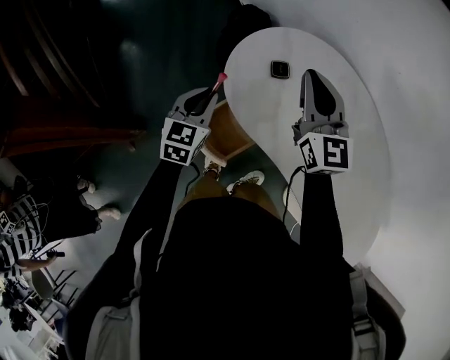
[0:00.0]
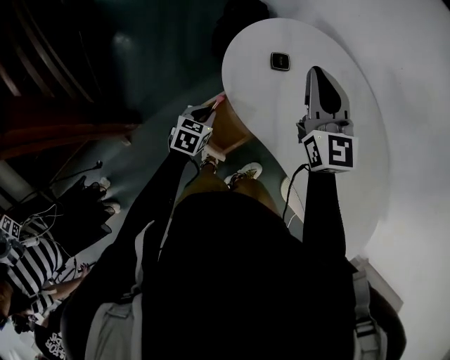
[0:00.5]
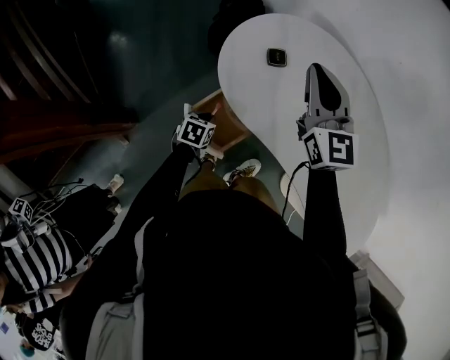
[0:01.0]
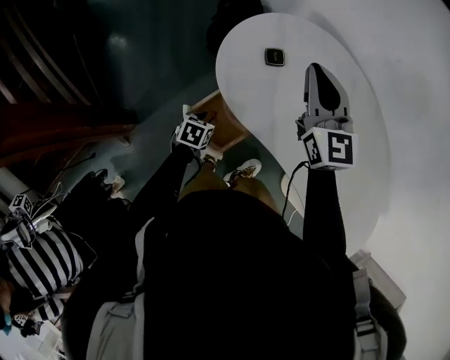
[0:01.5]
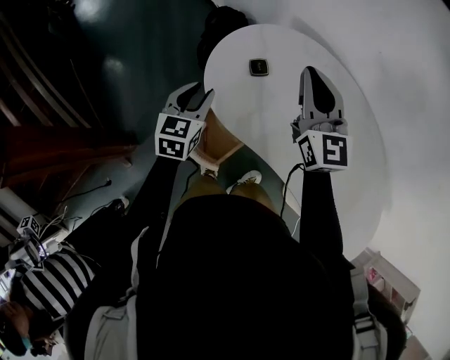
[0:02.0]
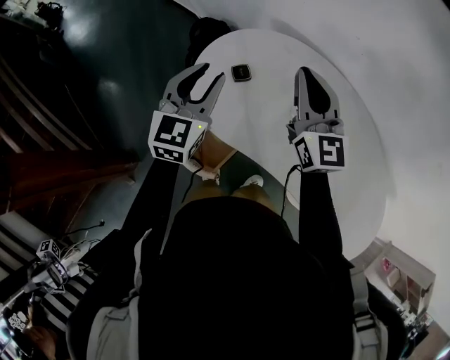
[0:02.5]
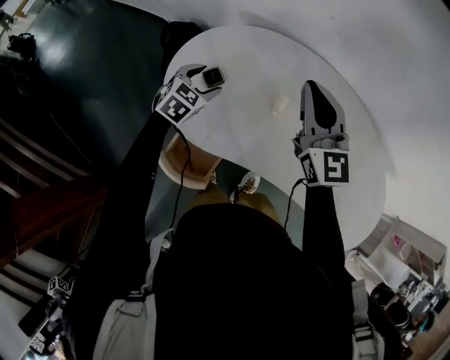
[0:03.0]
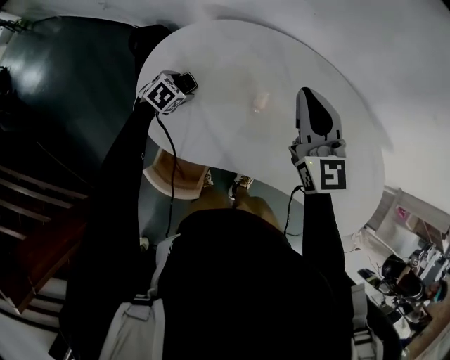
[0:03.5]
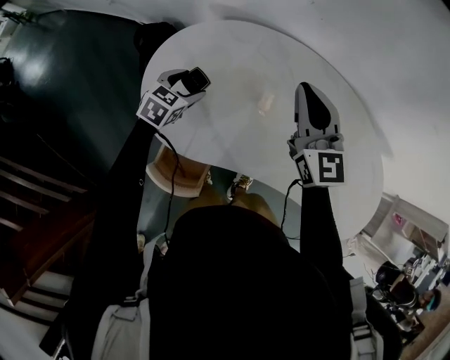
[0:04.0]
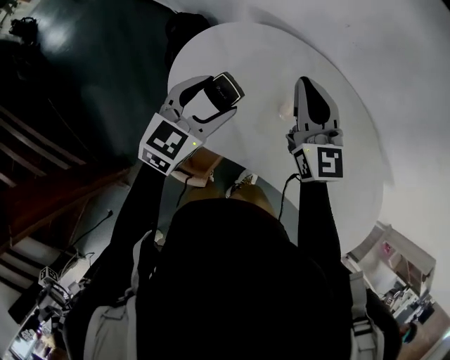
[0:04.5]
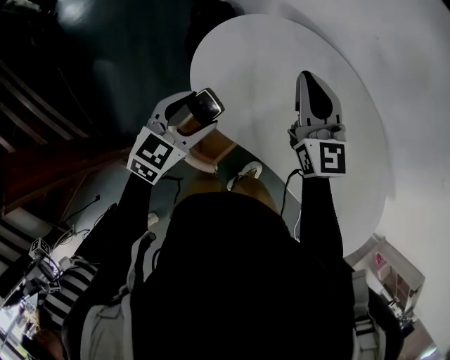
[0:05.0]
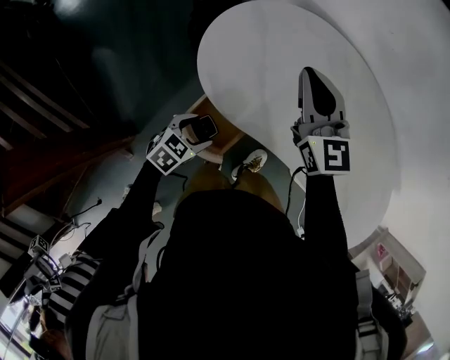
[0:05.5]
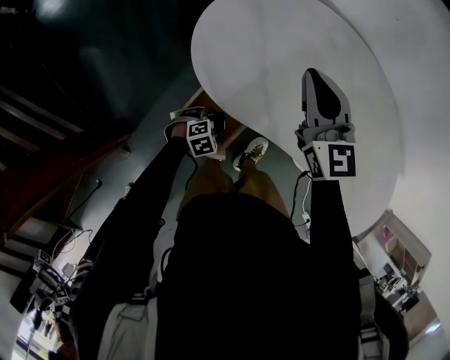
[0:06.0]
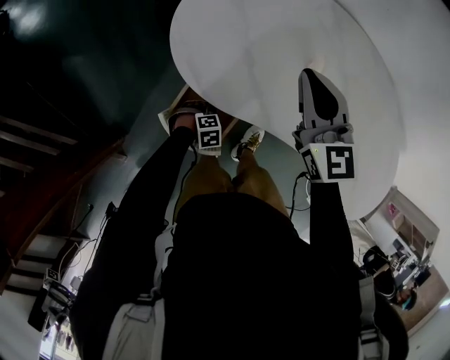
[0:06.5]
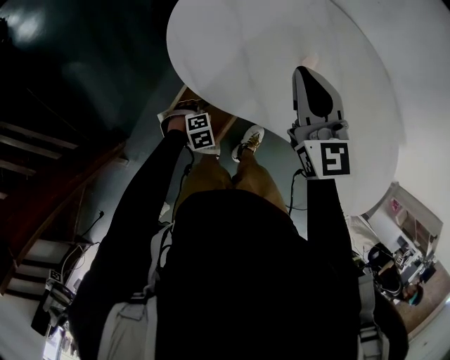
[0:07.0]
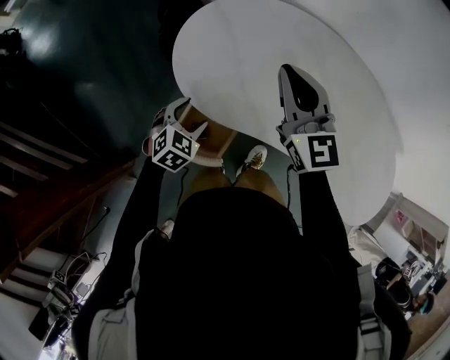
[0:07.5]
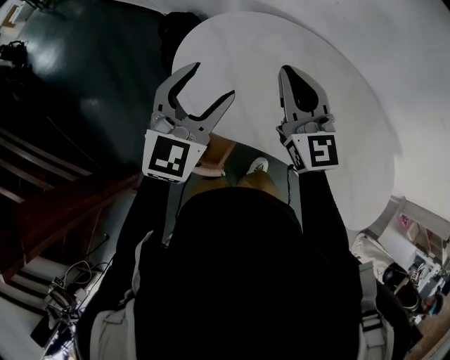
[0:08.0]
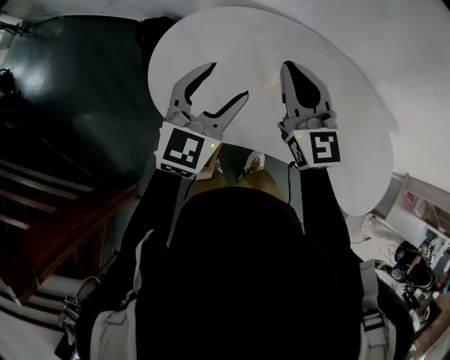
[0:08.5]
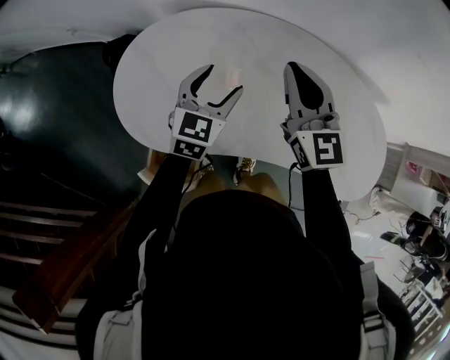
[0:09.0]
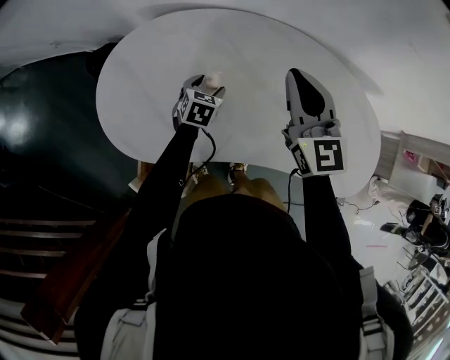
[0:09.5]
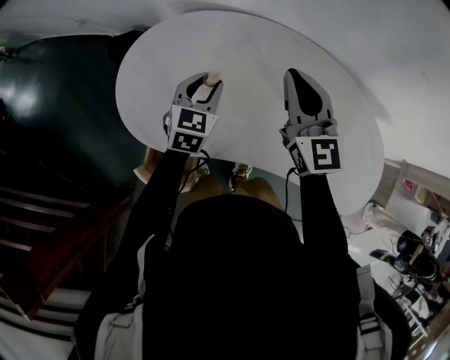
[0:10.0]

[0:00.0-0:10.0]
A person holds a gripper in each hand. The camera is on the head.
0:00.0 to 0:02.0: The right gripper shifts some 5 cm to the right. The left gripper goes downward and returns, roughly 20 cm each way.
0:02.0 to 0:04.0: The left gripper moves up and down over roughly 30 cm, changing direction 2 times, changes its angle by about 50 degrees, and opens its fingers, while the right gripper ends up approximately 15 cm from where it was, and changes its angle by roughly 20 degrees.
0:04.0 to 0:06.0: The right gripper moves to the left and backward, roughly 15 cm, while the left gripper travels backward and downward by about 35 cm, and turns by roughly 30 degrees.
0:06.0 to 0:08.0: The right gripper goes about 5 cm upward. The left gripper moves upward, approximately 40 cm, and angles its fingers upward, by roughly 60 degrees.
0:08.0 to 0:10.0: The left gripper heads downward, to the right and forward, covering about 25 cm, changes its angle by some 20 degrees, and closes. The right gripper travels to the right by roughly 20 cm.

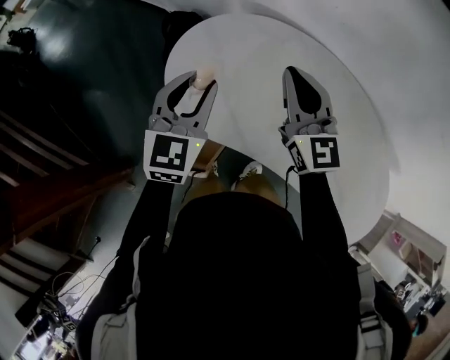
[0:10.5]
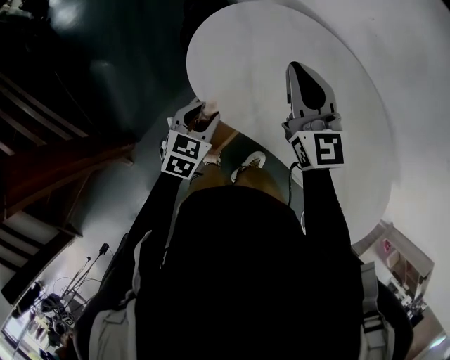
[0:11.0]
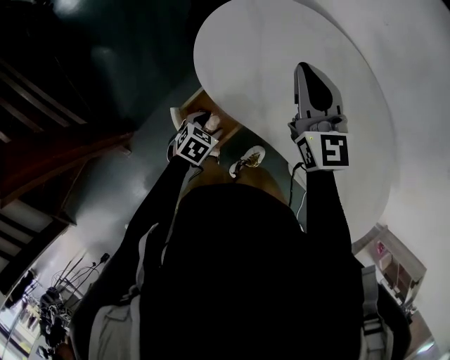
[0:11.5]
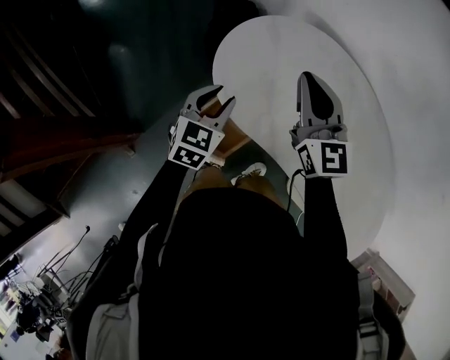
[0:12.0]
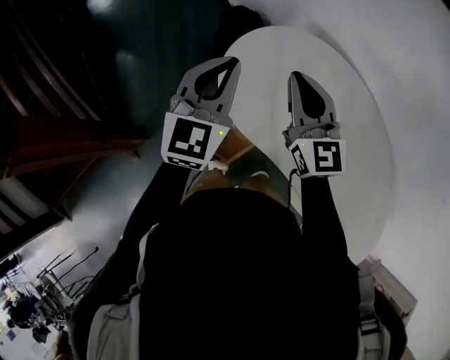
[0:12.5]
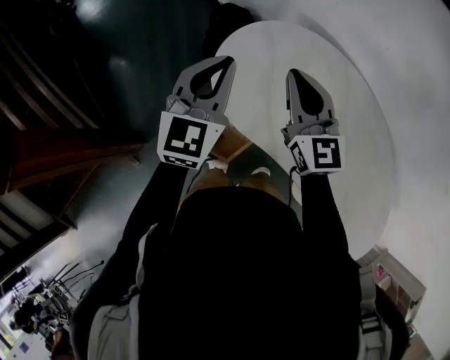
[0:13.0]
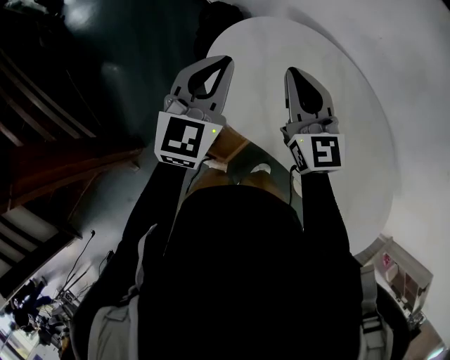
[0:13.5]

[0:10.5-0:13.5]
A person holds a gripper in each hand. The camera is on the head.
0:10.5 to 0:12.0: The right gripper is displaced to the left by some 10 cm; the left gripper is displaced downward and to the left by some 15 cm, and opens, then closes again.
0:12.0 to 0:13.5: The left gripper goes some 15 cm upward, turns by some 20 degrees, and closes up.

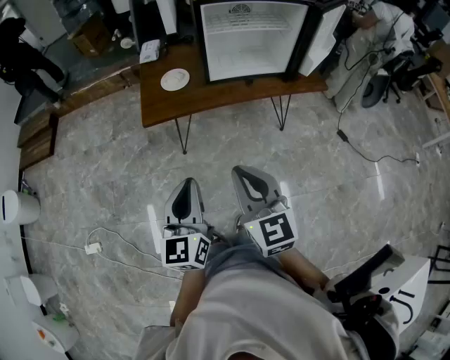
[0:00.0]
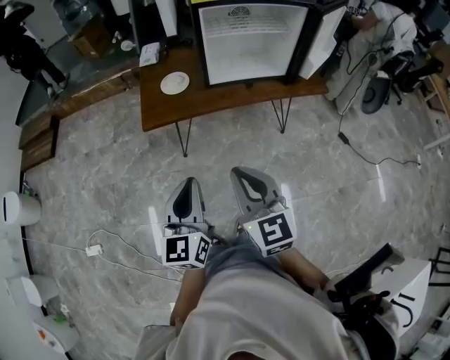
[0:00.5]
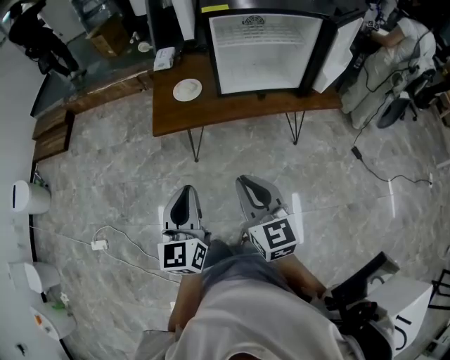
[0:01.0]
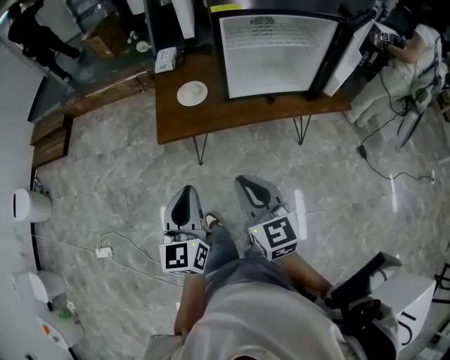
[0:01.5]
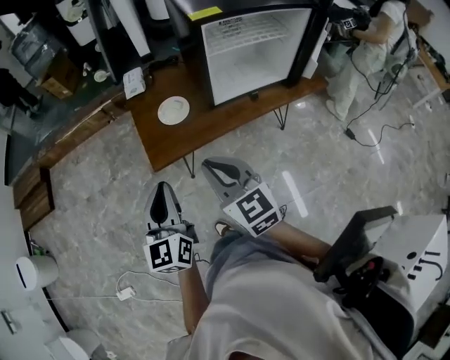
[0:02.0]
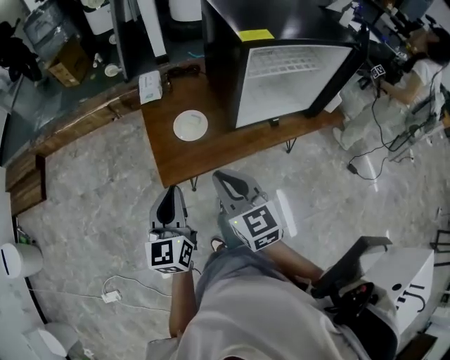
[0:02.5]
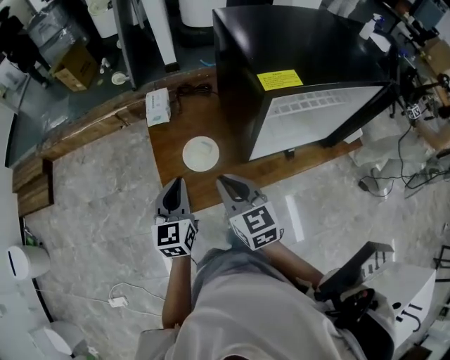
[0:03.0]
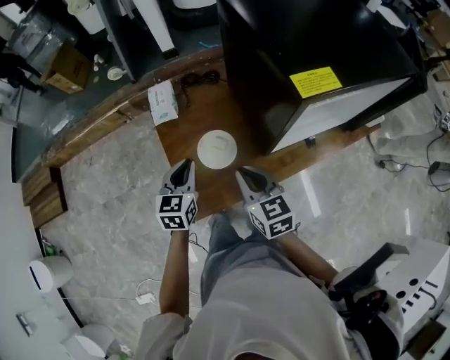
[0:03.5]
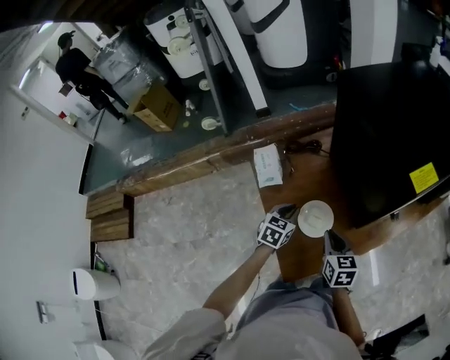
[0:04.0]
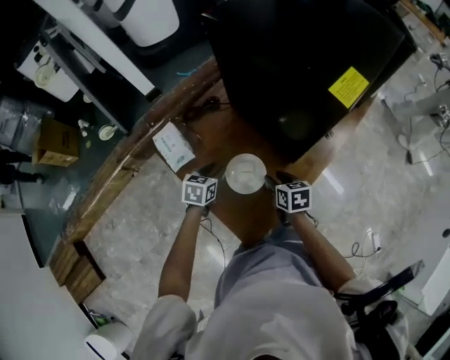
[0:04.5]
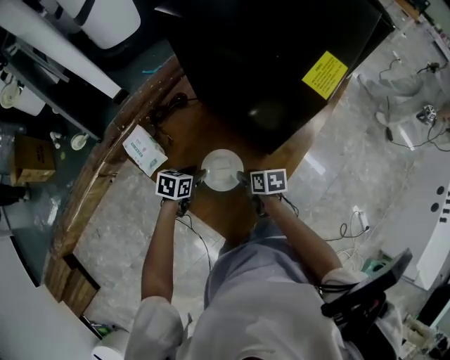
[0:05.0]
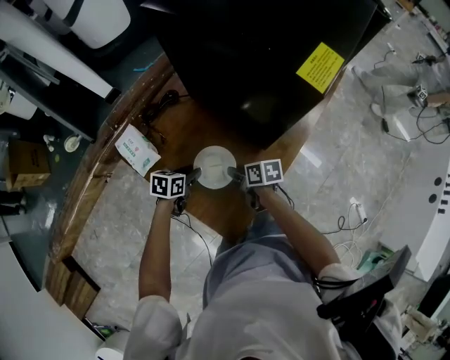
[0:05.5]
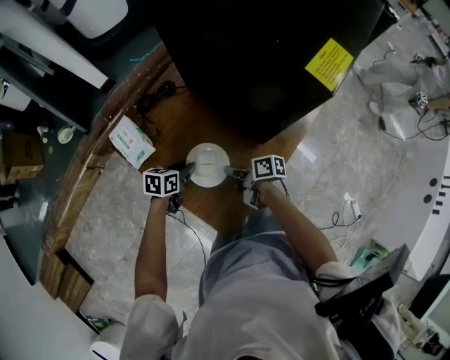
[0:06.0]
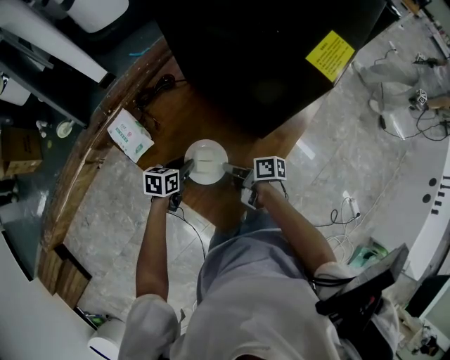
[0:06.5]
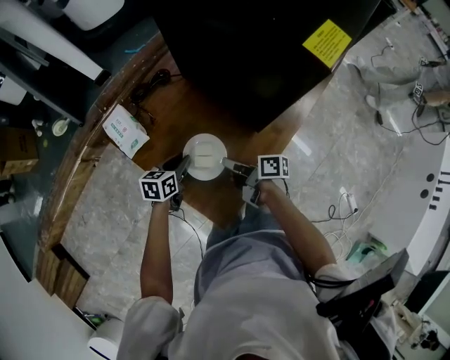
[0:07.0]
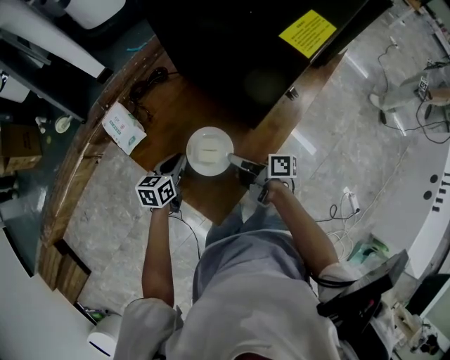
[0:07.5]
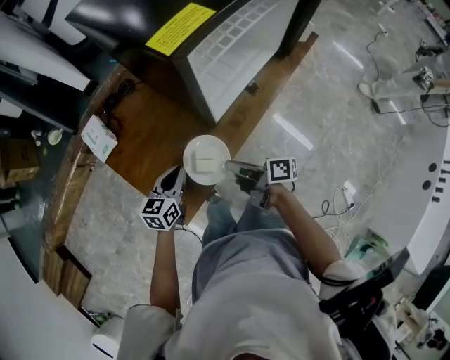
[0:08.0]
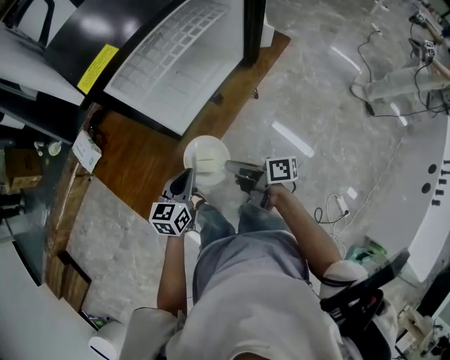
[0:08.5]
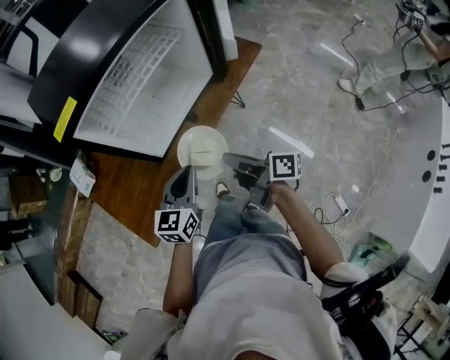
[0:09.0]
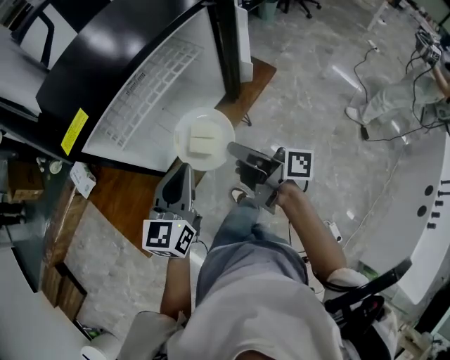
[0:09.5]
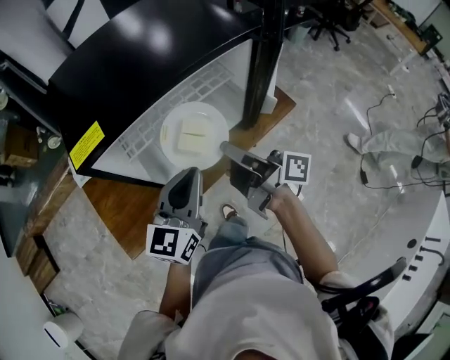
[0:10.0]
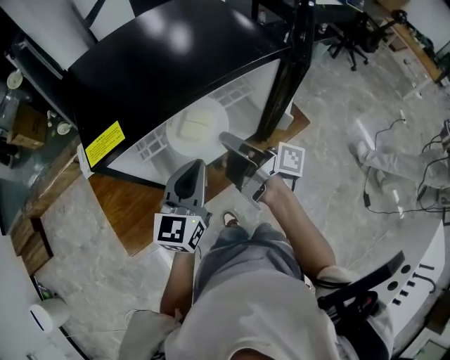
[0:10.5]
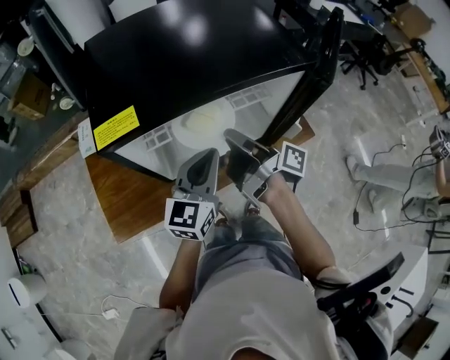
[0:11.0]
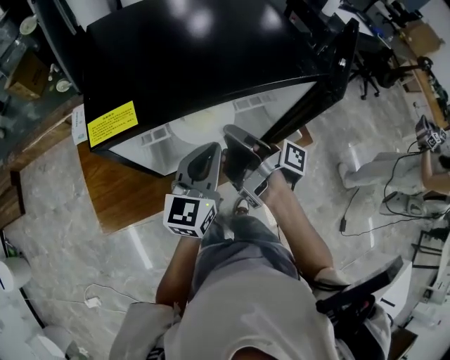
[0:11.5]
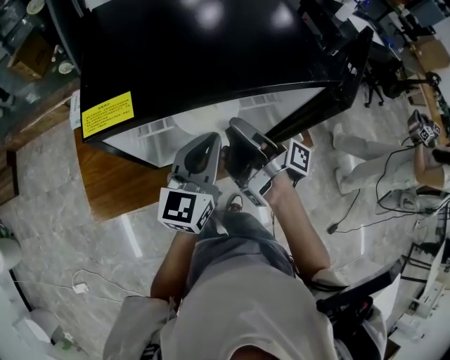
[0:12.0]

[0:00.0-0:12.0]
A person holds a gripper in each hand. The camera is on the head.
0:00.0 to 0:02.0: Both grippers move forward and to the left, approximately 40 cm.
0:02.0 to 0:04.0: The two grippers travel together, roughly 60 cm. The right gripper swivels roughly 40 degrees. The left gripper tilts its fingers about 40 degrees downward.
0:04.0 to 0:06.0: Both grippers travel together downward, approximately 20 cm. The right gripper twists roughly 60 degrees clockwise, seen from behind, and opens and closes again; the left gripper turns by about 30 degrees, and opens its fingers.
0:06.0 to 0:08.0: The two grippers go roughly 25 cm to the right and backward. The left gripper swivels roughly 30 degrees, and closes up.
0:08.0 to 0:10.0: Both grippers are carried to the right, about 50 cm. Both grippers travel together upward, roughly 25 cm. The left gripper turns by roughly 30 degrees, while the right gripper rotates about 20 degrees.
0:10.0 to 0:12.0: Both grippers travel together forward, roughly 10 cm. The right gripper changes its angle by roughly 20 degrees.

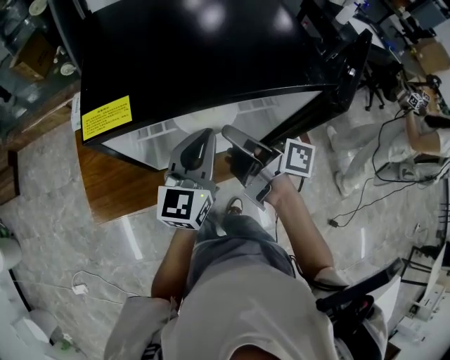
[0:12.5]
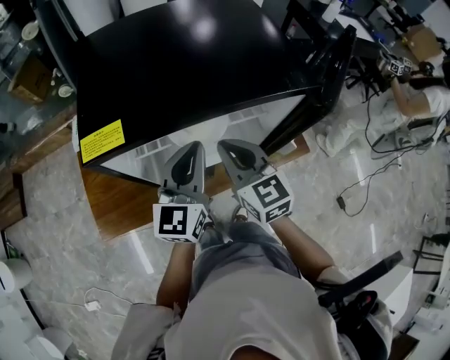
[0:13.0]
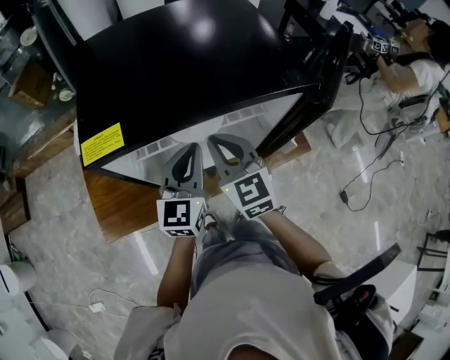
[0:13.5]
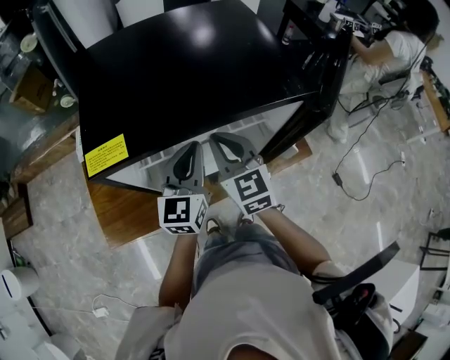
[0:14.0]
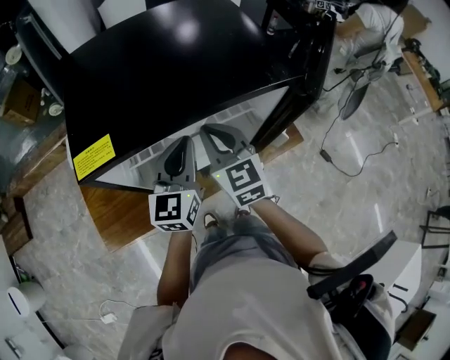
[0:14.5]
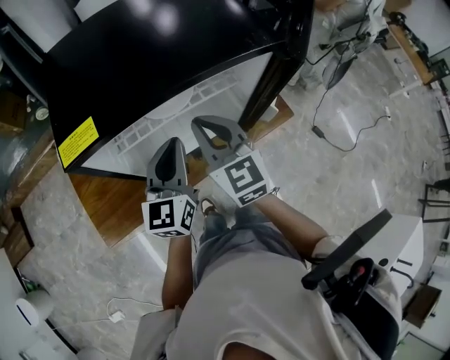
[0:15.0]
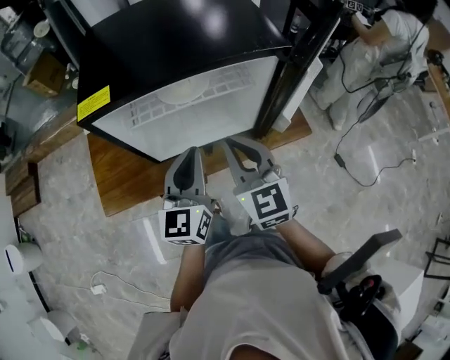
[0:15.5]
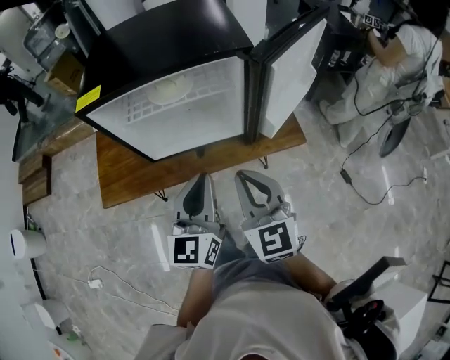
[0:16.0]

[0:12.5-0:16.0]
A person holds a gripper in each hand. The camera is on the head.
0:12.5 to 0:14.5: The right gripper rotates around the line of its fingers by roughly 80 degrees, counterclockwise from behind, and closes up.
0:14.5 to 0:16.0: The two grippers go about 35 cm backward and to the right.
